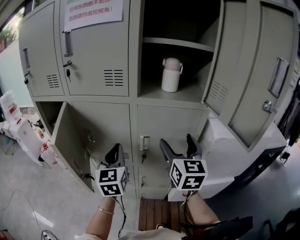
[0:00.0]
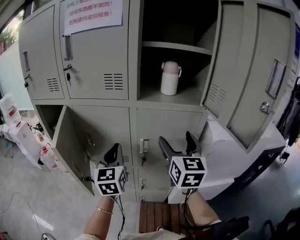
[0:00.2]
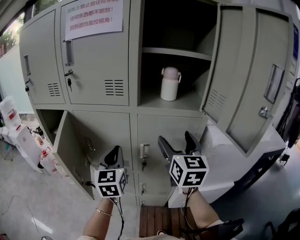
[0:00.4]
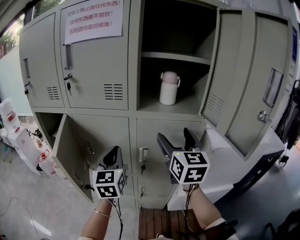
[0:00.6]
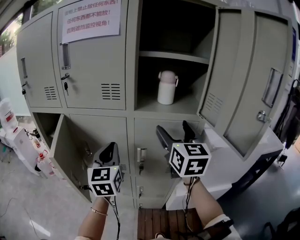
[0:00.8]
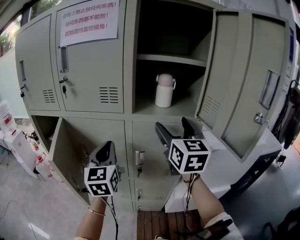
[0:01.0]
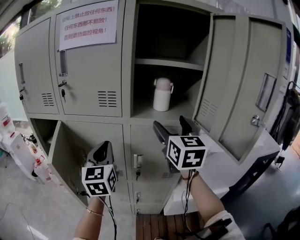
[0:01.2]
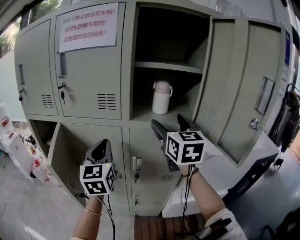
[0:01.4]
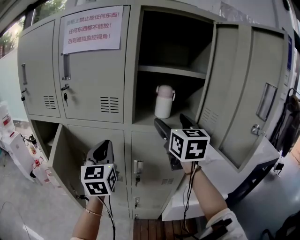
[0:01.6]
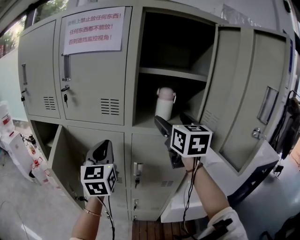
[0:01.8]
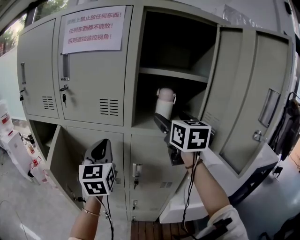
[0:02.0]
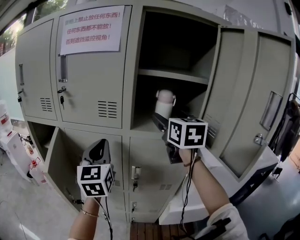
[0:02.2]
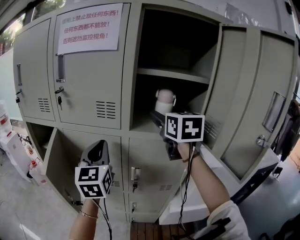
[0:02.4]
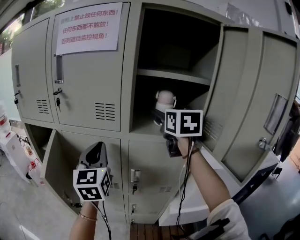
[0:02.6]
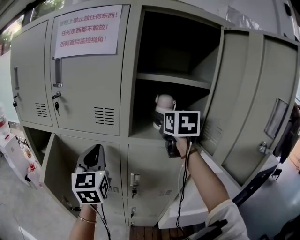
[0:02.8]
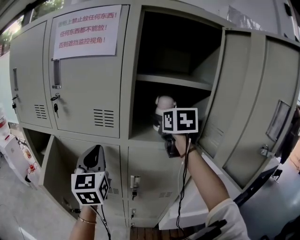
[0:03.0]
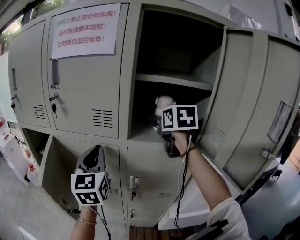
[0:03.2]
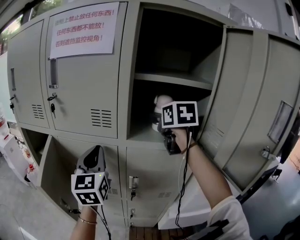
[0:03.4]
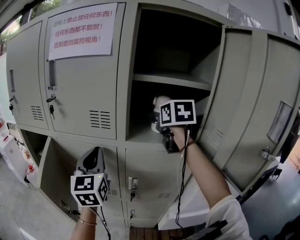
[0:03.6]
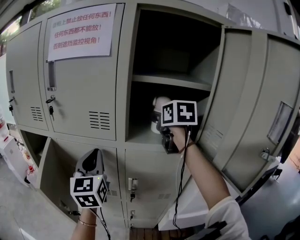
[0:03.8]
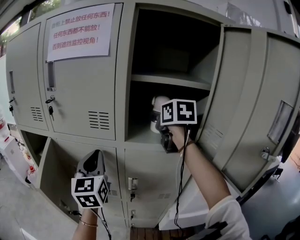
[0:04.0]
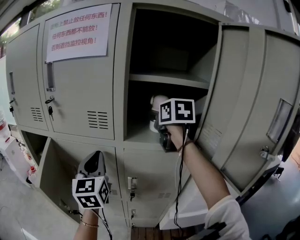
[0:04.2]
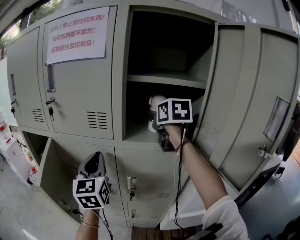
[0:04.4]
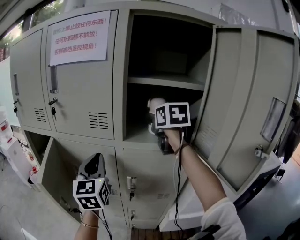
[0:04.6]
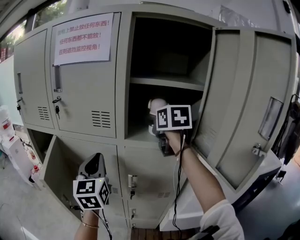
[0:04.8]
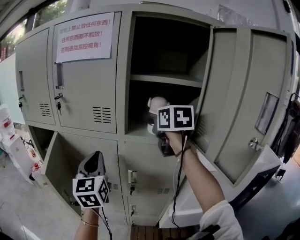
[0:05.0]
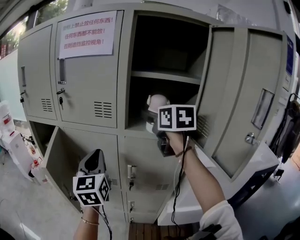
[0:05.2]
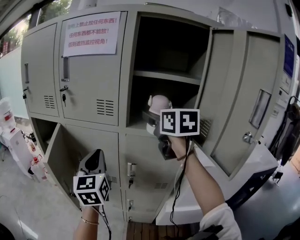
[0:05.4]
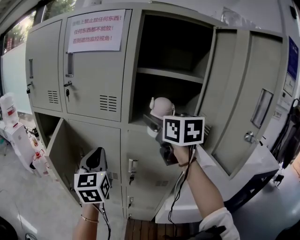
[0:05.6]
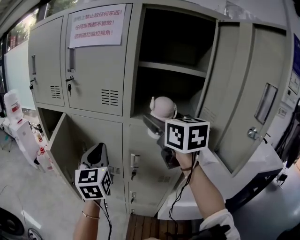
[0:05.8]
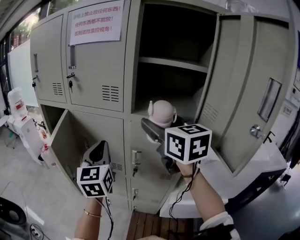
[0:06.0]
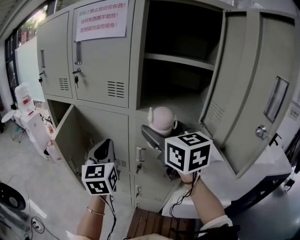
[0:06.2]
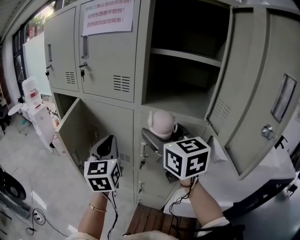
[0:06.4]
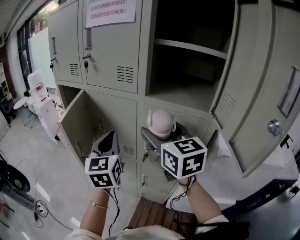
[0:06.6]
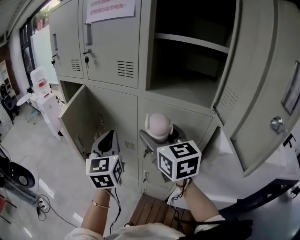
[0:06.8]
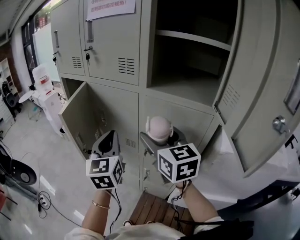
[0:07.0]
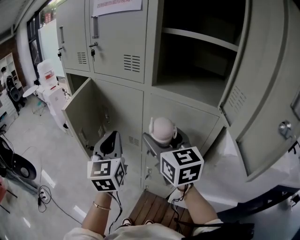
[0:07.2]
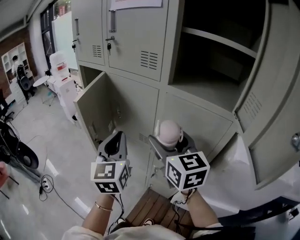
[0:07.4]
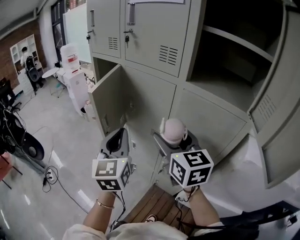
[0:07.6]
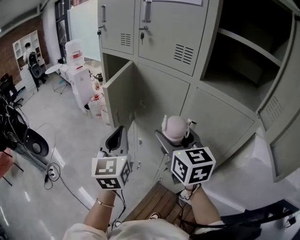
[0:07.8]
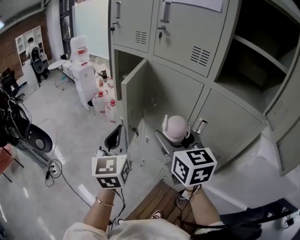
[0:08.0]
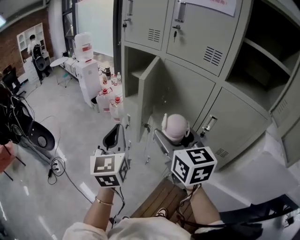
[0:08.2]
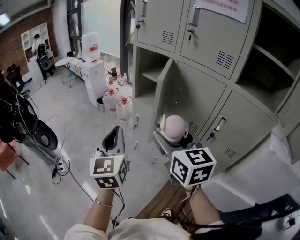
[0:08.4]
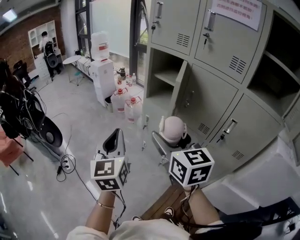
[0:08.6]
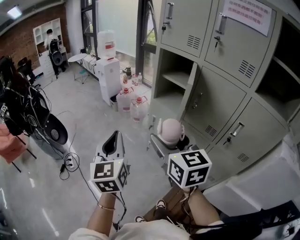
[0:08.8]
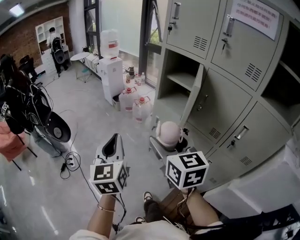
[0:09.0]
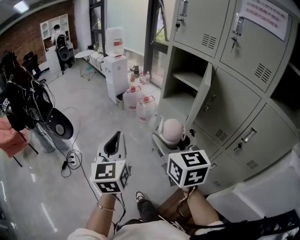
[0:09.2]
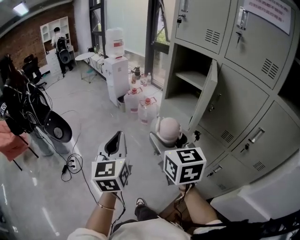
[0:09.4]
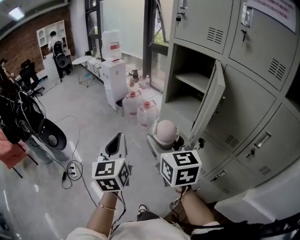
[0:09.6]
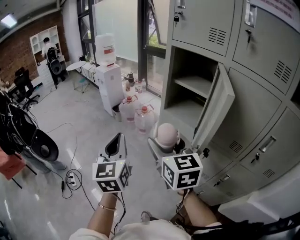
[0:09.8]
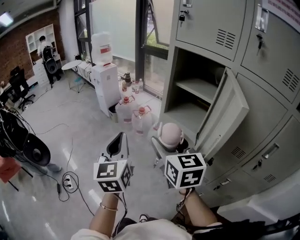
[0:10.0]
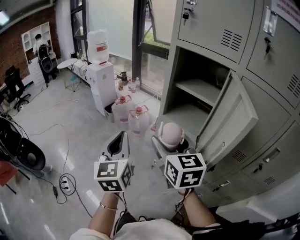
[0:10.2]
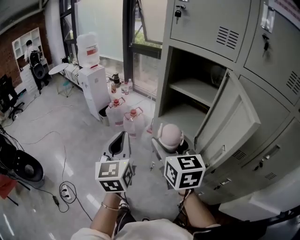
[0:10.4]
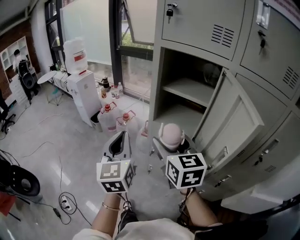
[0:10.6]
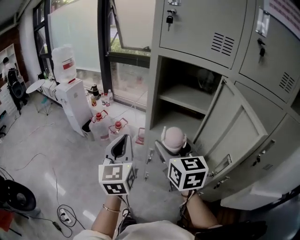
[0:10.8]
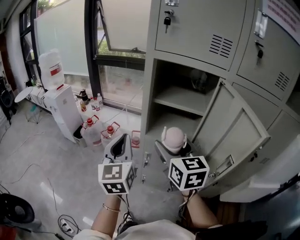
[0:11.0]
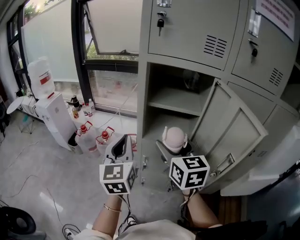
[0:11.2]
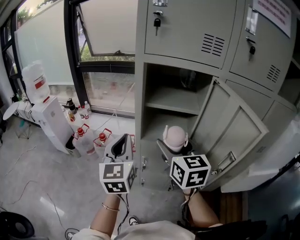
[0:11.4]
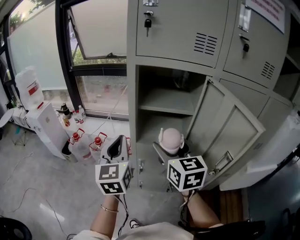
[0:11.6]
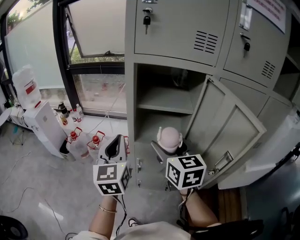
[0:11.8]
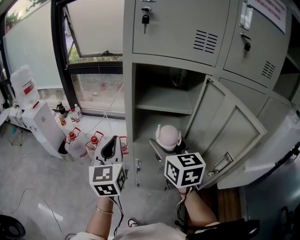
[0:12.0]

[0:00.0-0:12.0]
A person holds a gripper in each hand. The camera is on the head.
0:00.0 to 0:01.6: The left gripper goes roughly 10 cm upward. Meanwhile the right gripper moves upward and forward, approximately 15 cm.
0:01.6 to 0:03.0: The right gripper moves forward, approximately 10 cm.
0:03.0 to 0:04.4: The grippers stay close to where they were, moving slightly.
0:04.4 to 0:06.0: The left gripper is displaced backward by roughly 10 cm, while the right gripper is displaced backward and to the left by about 20 cm, and turns by some 20 degrees.
0:06.0 to 0:07.6: The right gripper travels downward and to the left by about 20 cm, while the left gripper travels to the left, backward and downward by approximately 10 cm.
0:07.6 to 0:09.0: The grippers both shift to the left by about 35 cm.
0:09.0 to 0:10.4: The left gripper moves forward, roughly 30 cm. Meanwhile the right gripper heads forward and downward, covering roughly 30 cm.
0:10.4 to 0:12.0: The right gripper shifts by approximately 10 cm, and rotates approximately 30 degrees. Meanwhile the left gripper shifts by about 20 cm, and swivels roughly 30 degrees.

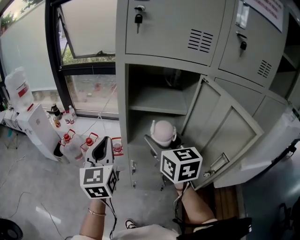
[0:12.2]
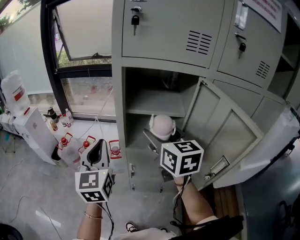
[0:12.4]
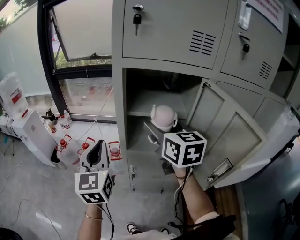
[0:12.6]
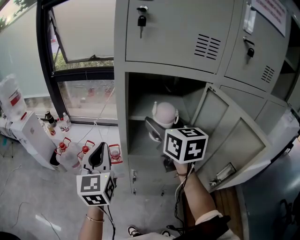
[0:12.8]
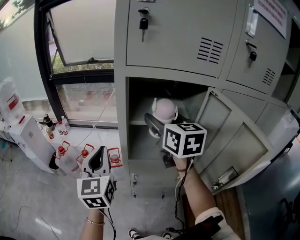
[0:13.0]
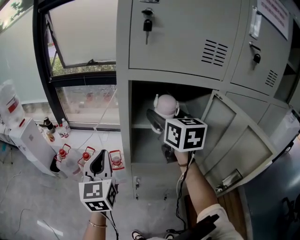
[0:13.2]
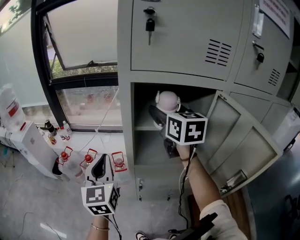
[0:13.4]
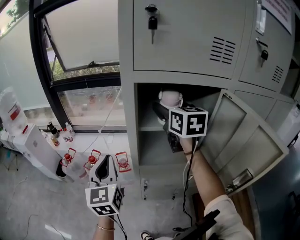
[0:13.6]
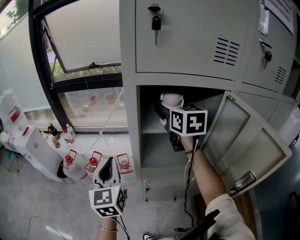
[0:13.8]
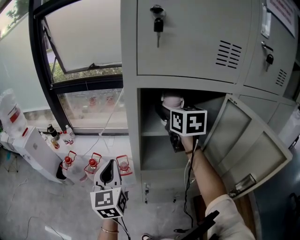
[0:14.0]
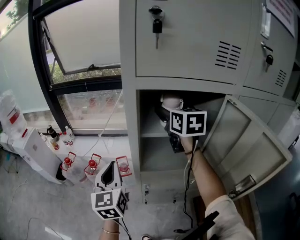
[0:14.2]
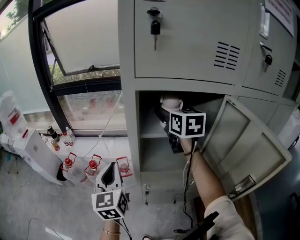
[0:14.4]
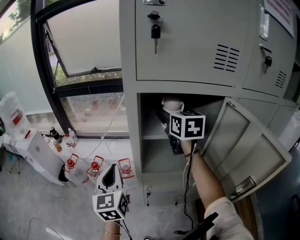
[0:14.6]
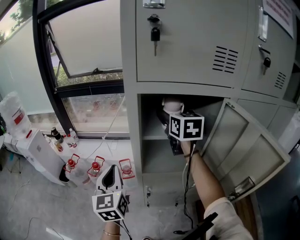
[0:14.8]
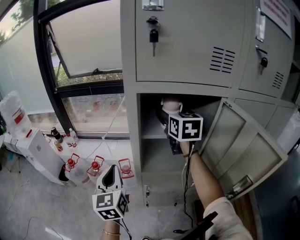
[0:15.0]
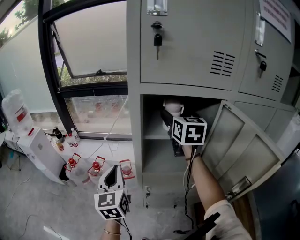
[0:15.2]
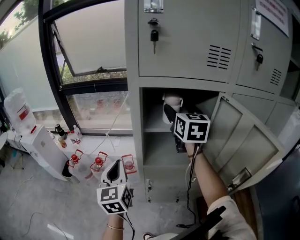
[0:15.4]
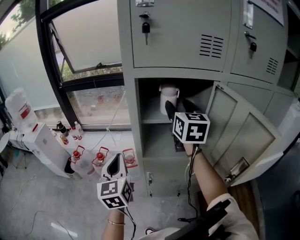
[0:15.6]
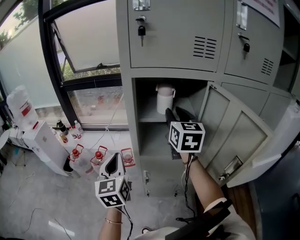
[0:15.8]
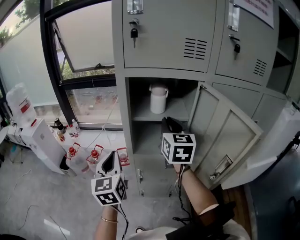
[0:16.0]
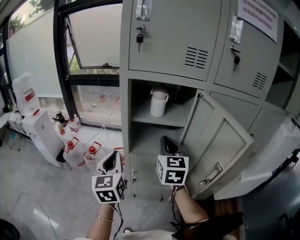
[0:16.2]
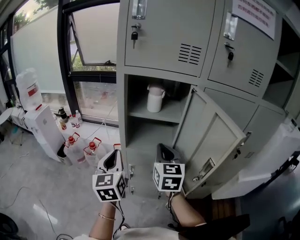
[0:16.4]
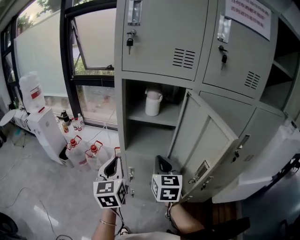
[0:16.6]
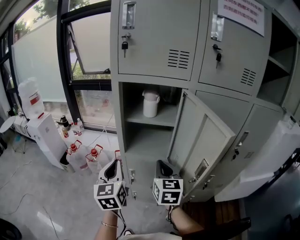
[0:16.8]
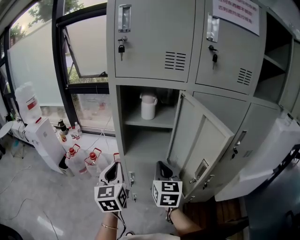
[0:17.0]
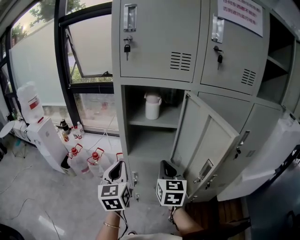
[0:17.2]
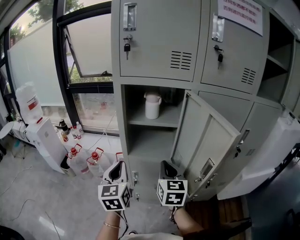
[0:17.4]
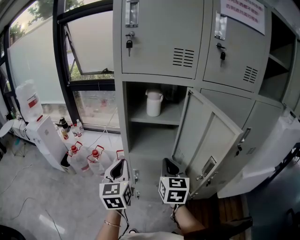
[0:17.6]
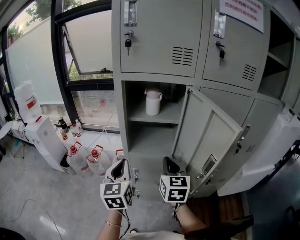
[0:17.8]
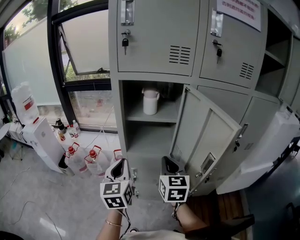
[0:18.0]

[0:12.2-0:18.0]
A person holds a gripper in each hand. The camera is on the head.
0:12.2 to 0:13.6: The left gripper goes roughly 10 cm forward. Meanwhile the right gripper shifts some 20 cm forward.
0:13.6 to 0:15.0: There are only small adjustments of the grippers.
0:15.0 to 0:16.6: The left gripper goes some 15 cm backward and to the right; the right gripper heads backward and downward, covering about 30 cm, and closes.
0:16.6 to 0:18.0: The grippers move only a little.

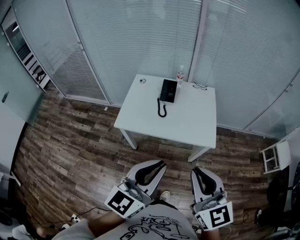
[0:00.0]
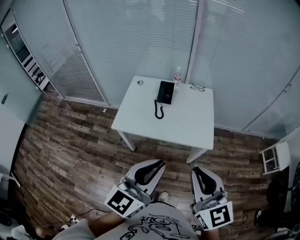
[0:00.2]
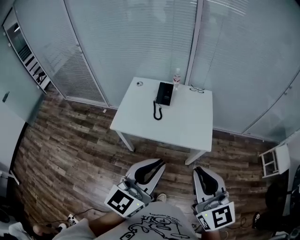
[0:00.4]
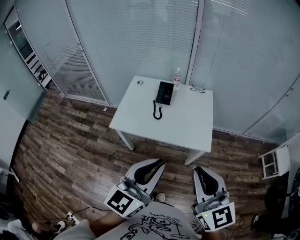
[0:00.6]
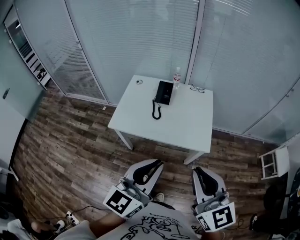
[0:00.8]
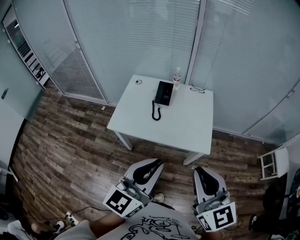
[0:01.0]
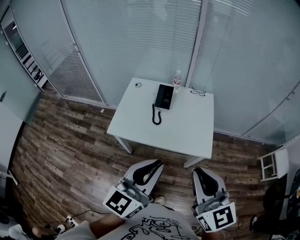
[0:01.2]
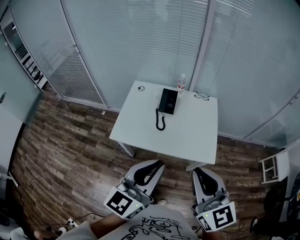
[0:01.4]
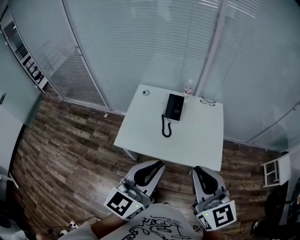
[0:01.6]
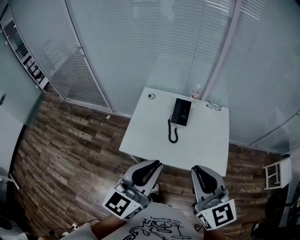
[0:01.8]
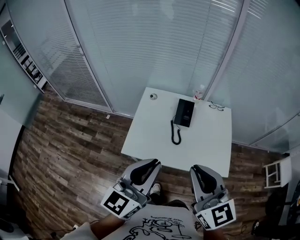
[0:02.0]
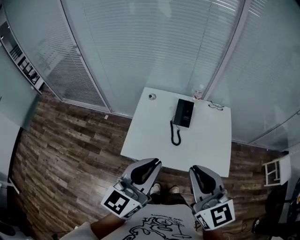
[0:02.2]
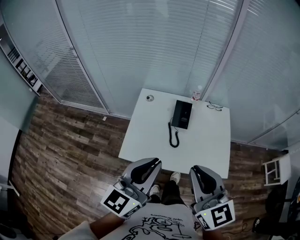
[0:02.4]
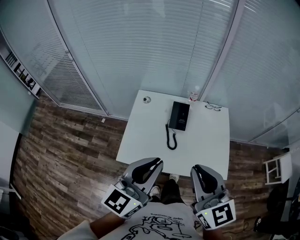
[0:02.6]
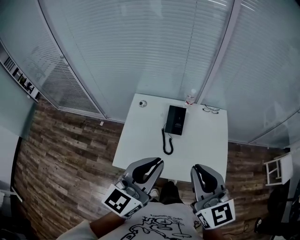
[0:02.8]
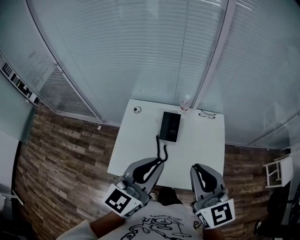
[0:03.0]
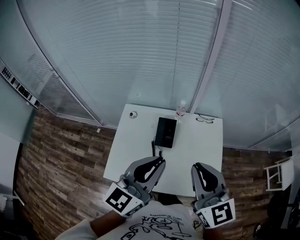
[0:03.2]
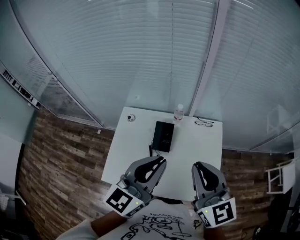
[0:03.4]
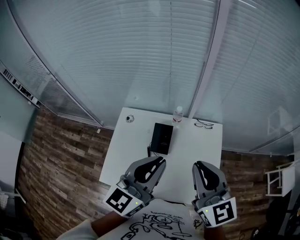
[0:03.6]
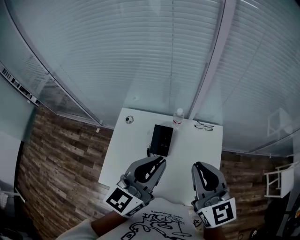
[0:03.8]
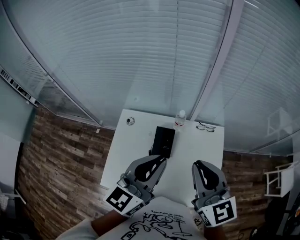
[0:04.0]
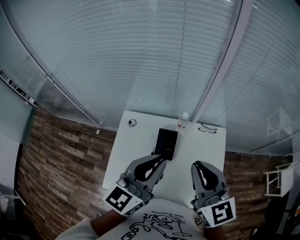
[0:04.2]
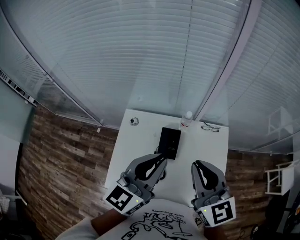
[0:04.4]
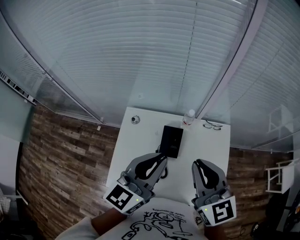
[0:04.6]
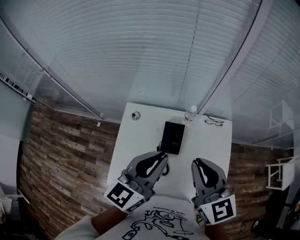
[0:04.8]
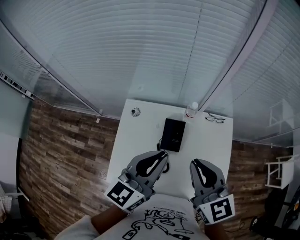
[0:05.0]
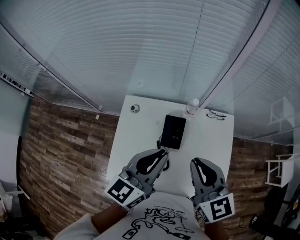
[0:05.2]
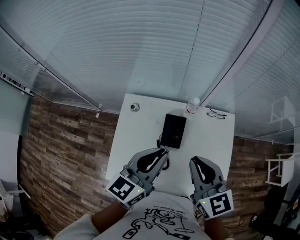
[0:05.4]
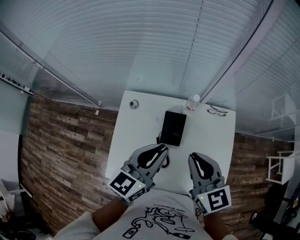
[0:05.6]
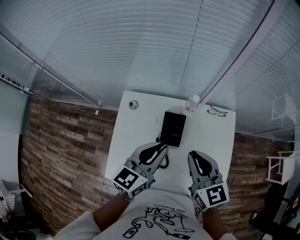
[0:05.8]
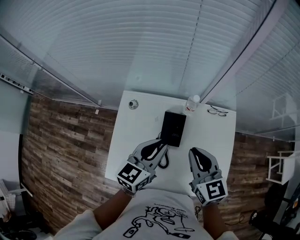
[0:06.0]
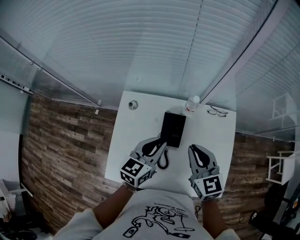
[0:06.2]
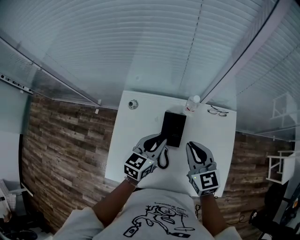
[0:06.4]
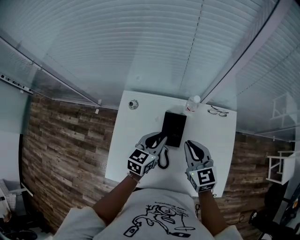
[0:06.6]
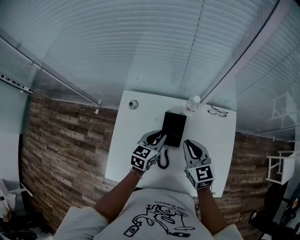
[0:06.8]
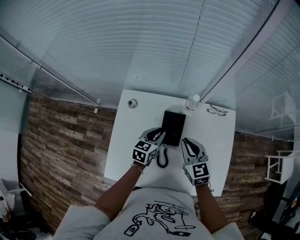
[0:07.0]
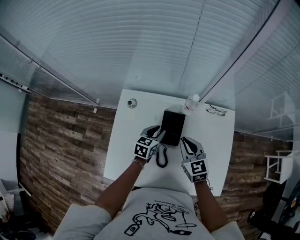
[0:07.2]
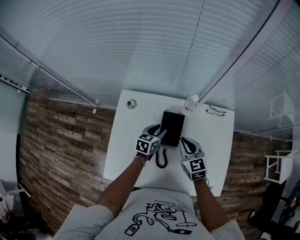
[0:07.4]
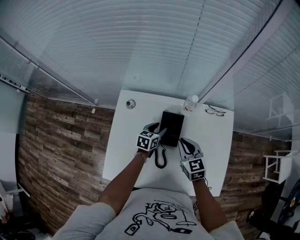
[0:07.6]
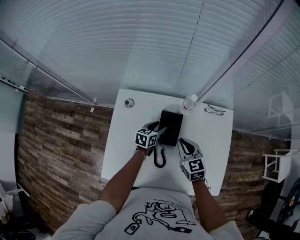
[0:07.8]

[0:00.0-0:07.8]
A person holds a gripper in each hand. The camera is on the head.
0:00.0 to 0:01.6: The two grippers go some 15 cm forward.
0:01.6 to 0:03.2: Both grippers move forward, roughly 25 cm.
0:03.2 to 0:04.6: Both grippers move forward, roughly 10 cm.
0:04.6 to 0:06.2: Both grippers travel together downward, some 20 cm. The left gripper swivels some 20 degrees.
0:06.2 to 0:07.8: The right gripper moves downward, roughly 15 cm. The left gripper goes roughly 25 cm downward, and opens its fingers.
